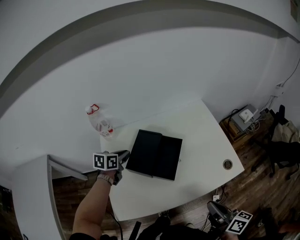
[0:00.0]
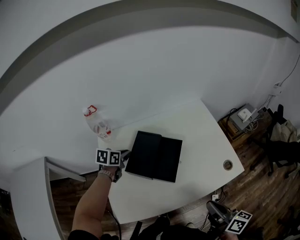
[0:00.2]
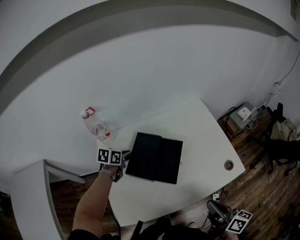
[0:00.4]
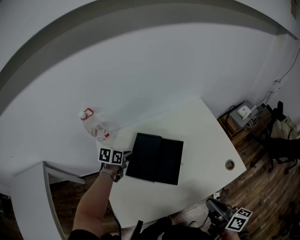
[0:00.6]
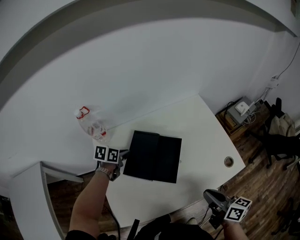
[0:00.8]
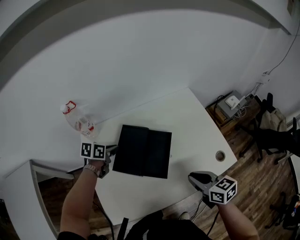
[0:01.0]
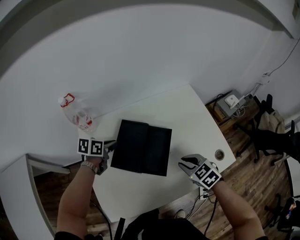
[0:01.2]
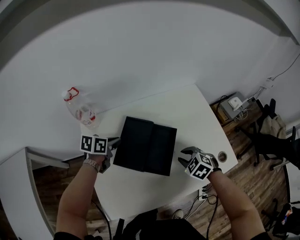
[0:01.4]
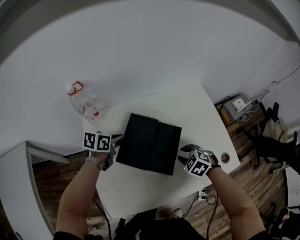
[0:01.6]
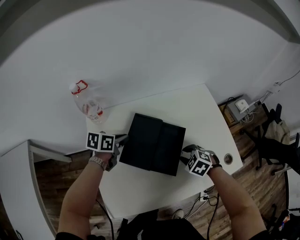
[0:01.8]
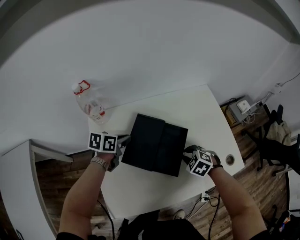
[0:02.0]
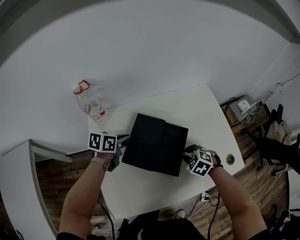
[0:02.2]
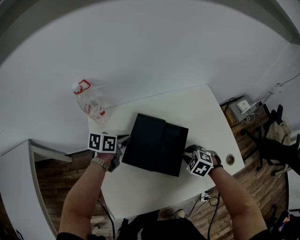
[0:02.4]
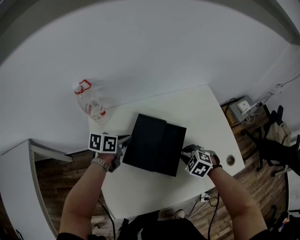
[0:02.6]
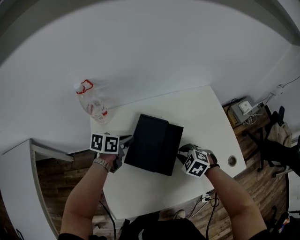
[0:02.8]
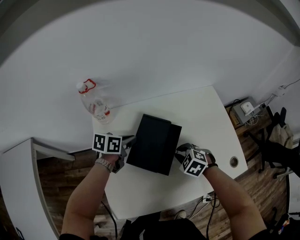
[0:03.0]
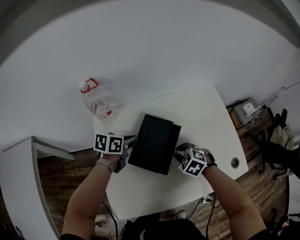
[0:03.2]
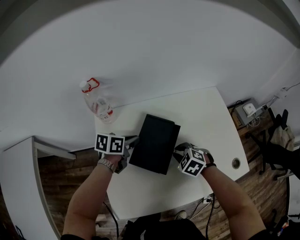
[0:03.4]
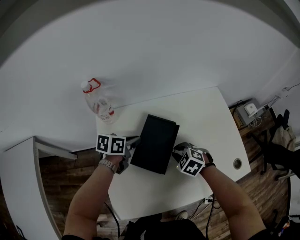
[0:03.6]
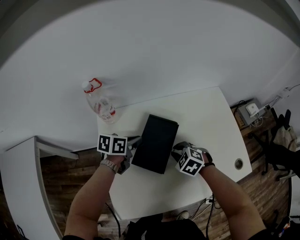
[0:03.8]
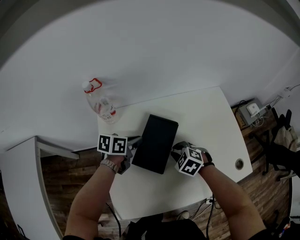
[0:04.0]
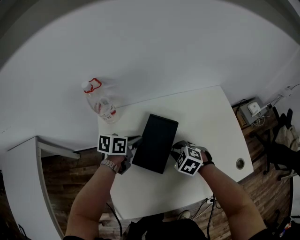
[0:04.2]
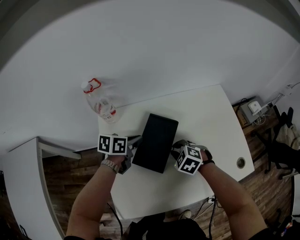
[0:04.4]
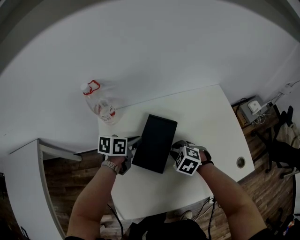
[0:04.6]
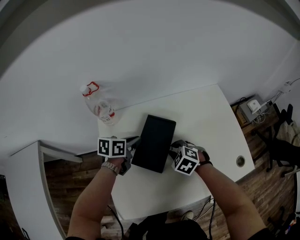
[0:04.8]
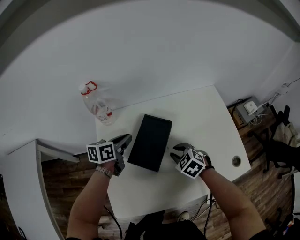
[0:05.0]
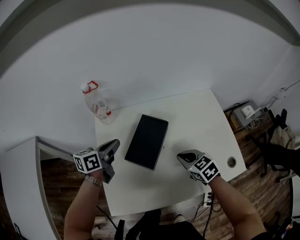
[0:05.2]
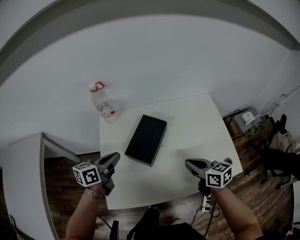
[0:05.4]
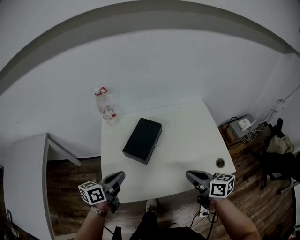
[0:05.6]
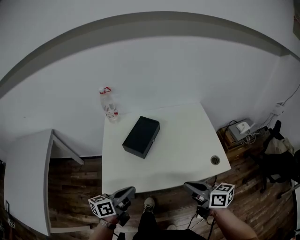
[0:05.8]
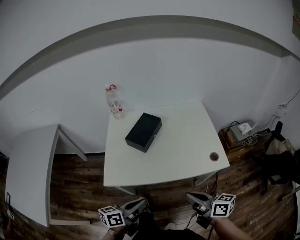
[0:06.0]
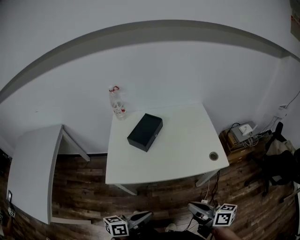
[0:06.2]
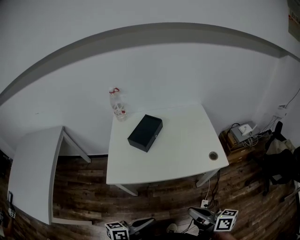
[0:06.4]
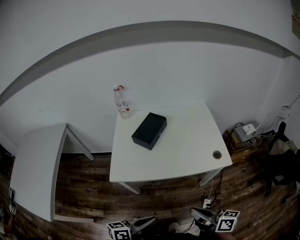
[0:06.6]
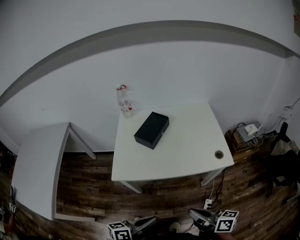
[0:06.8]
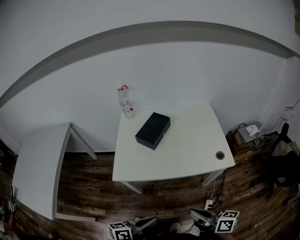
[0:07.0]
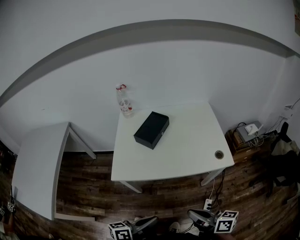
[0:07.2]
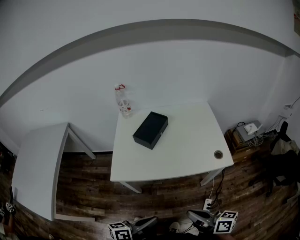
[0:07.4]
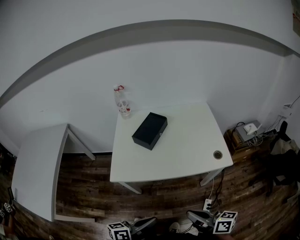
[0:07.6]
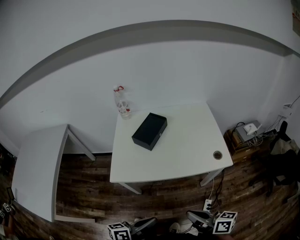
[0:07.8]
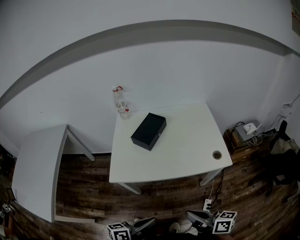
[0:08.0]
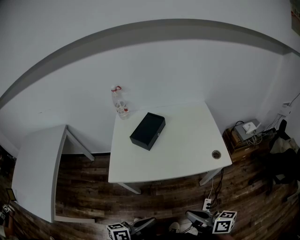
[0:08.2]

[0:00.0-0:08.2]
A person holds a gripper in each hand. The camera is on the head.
0:00.0 to 0:01.6: The left gripper goes roughly 5 cm downward. The right gripper is displaced forward, downward and to the left by roughly 30 cm, tilts its fingers some 50 degrees downward, and opens.
0:01.6 to 0:03.2: The right gripper goes roughly 10 cm to the left.
0:03.2 to 0:05.0: There are only small adjustments of the grippers.
0:05.0 to 0:06.6: The two grippers travel together, backward, roughly 50 cm. The right gripper shifts about 20 cm upward, tips its fingers upward by about 50 degrees, and closes its fingers. The left gripper rotates some 20 degrees.
0:06.6 to 0:08.2: The grippers make only small movements.

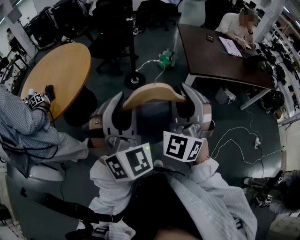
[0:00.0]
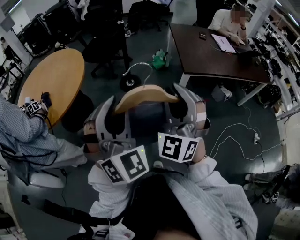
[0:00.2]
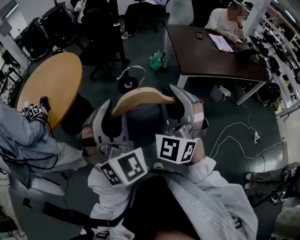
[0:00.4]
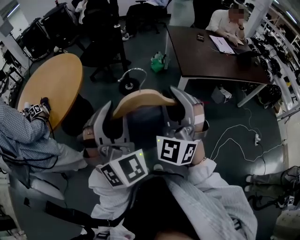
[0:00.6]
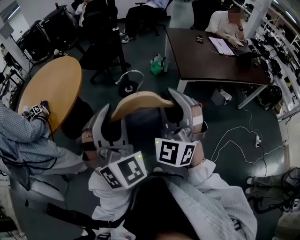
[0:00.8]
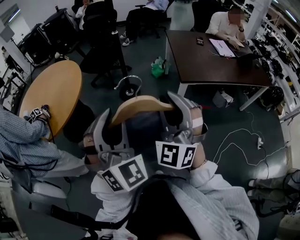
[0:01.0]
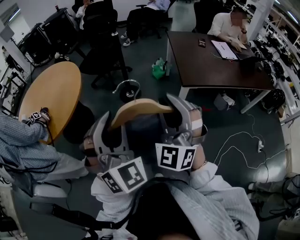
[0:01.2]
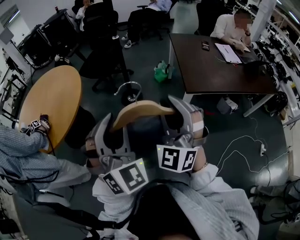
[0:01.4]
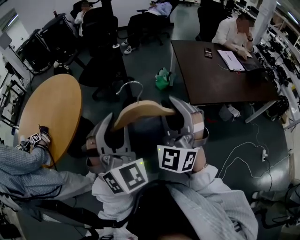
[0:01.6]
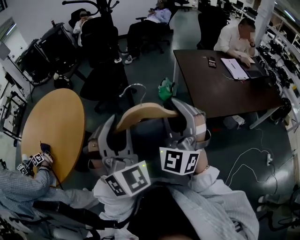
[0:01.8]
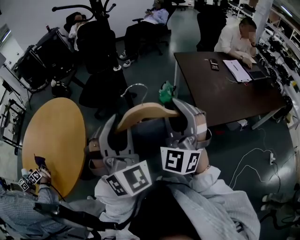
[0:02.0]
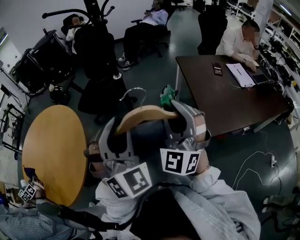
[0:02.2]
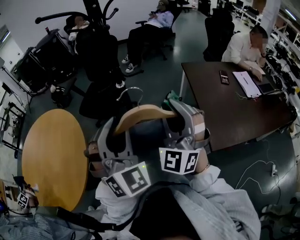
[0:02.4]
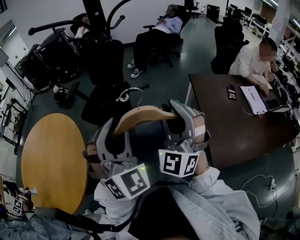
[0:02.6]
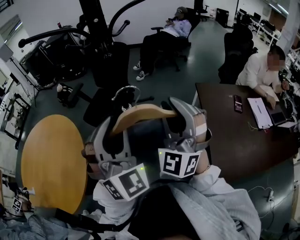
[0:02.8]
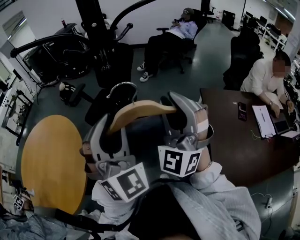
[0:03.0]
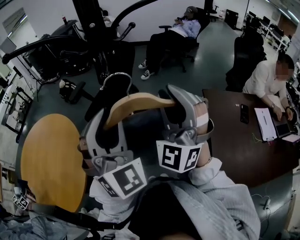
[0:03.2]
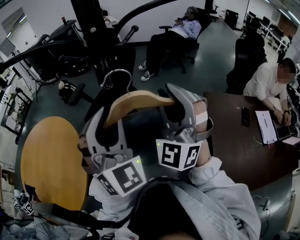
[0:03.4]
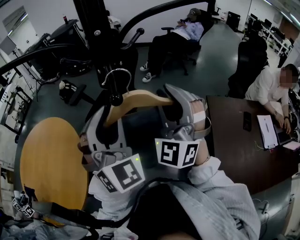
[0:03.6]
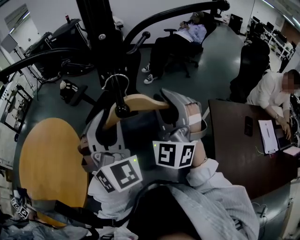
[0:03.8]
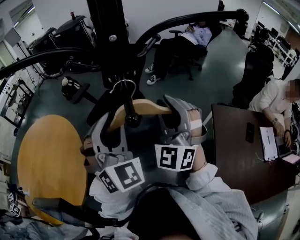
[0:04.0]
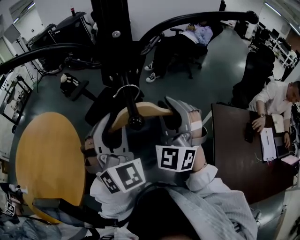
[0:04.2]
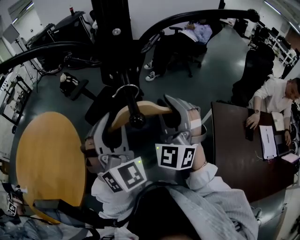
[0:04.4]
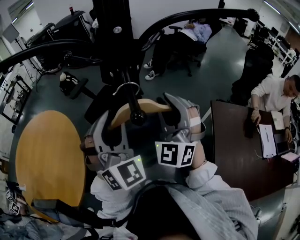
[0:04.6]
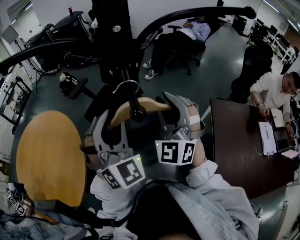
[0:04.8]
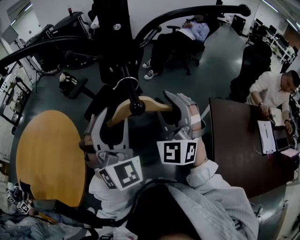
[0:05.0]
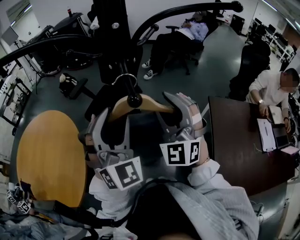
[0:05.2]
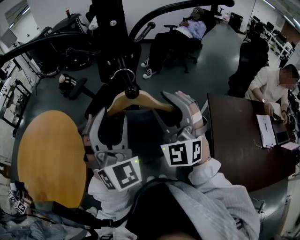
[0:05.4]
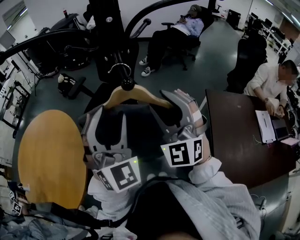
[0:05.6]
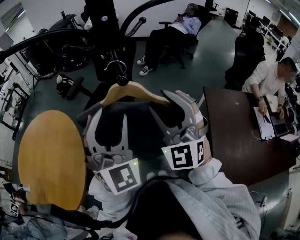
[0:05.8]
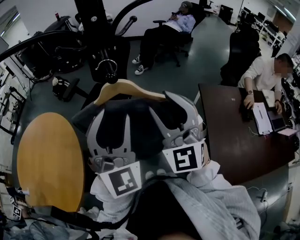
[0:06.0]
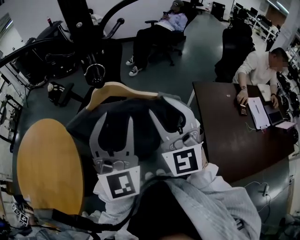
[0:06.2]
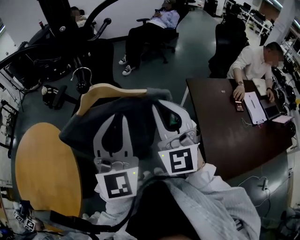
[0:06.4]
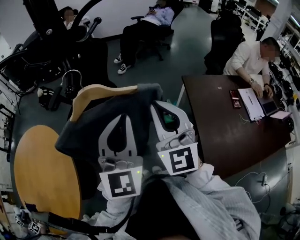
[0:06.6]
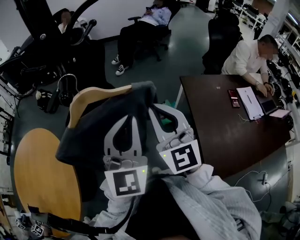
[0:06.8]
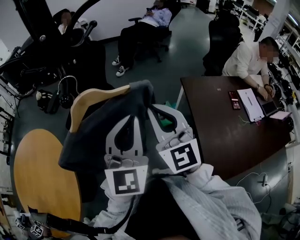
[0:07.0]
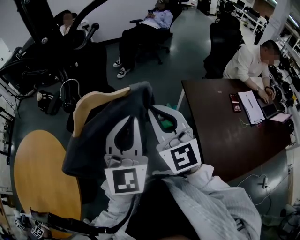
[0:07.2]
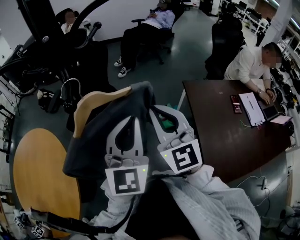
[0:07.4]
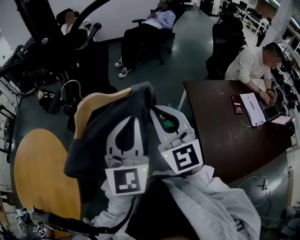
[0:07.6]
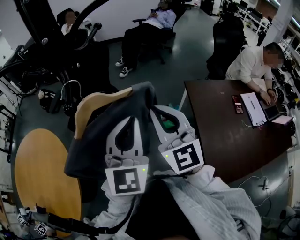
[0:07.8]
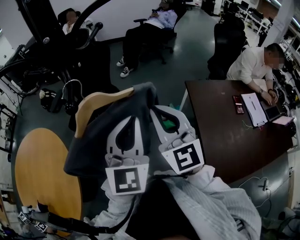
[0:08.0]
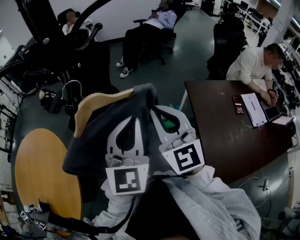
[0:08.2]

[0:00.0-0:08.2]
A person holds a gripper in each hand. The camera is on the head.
0:00.0 to 0:01.6: The two grippers go roughly 25 cm forward.
0:01.6 to 0:03.2: The two grippers travel together, forward, about 70 cm.
0:03.2 to 0:05.0: The right gripper moves forward and downward, roughly 10 cm, while the left gripper travels forward by roughly 10 cm.
0:05.0 to 0:06.6: The left gripper heads to the right and backward, covering some 15 cm, changes its angle by approximately 40 degrees, and closes its fingers; the right gripper shifts approximately 15 cm backward and to the right, swivels some 30 degrees, and closes its fingers.
0:06.6 to 0:08.2: The grippers stay close to where they were, moving slightly.

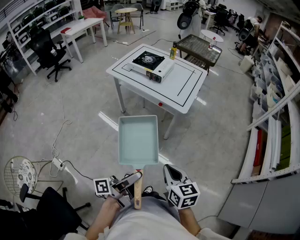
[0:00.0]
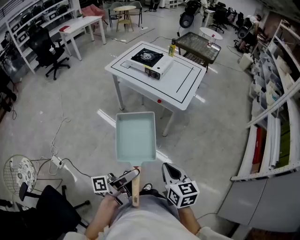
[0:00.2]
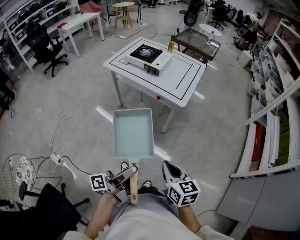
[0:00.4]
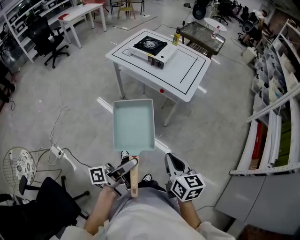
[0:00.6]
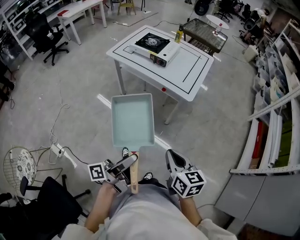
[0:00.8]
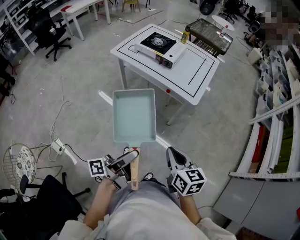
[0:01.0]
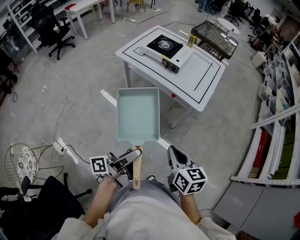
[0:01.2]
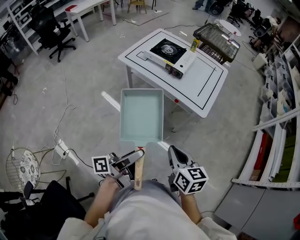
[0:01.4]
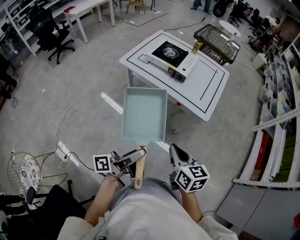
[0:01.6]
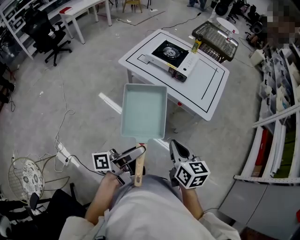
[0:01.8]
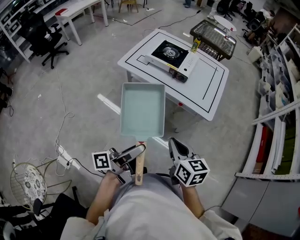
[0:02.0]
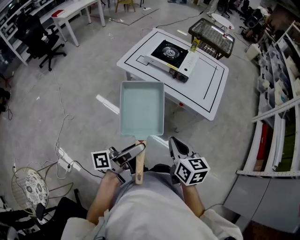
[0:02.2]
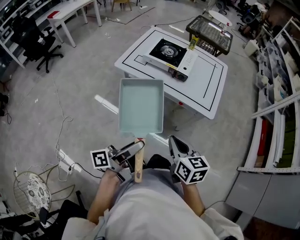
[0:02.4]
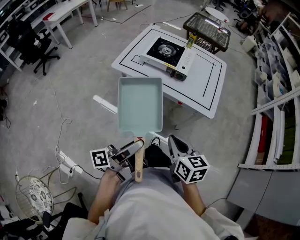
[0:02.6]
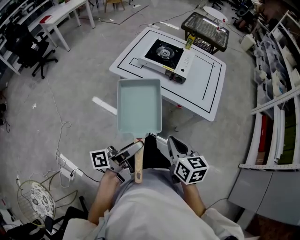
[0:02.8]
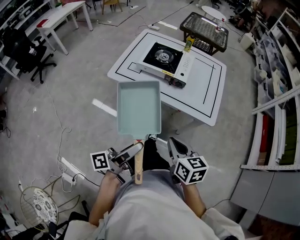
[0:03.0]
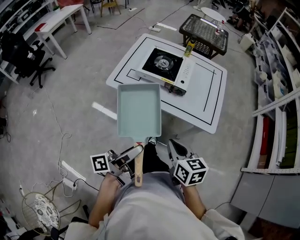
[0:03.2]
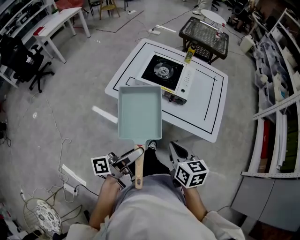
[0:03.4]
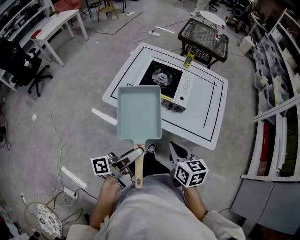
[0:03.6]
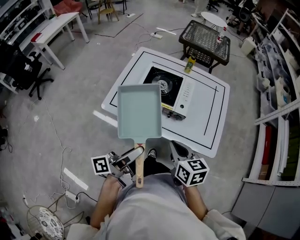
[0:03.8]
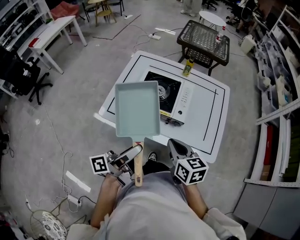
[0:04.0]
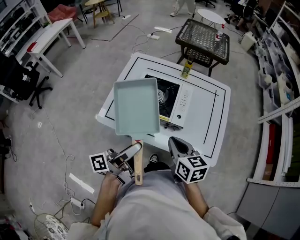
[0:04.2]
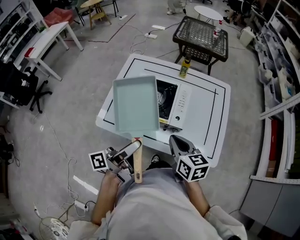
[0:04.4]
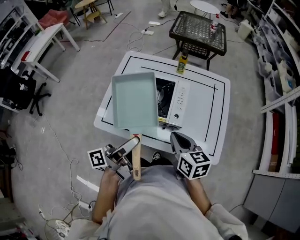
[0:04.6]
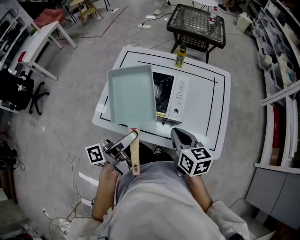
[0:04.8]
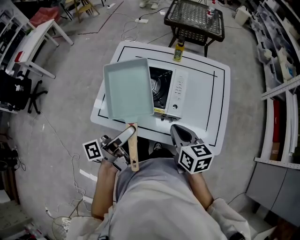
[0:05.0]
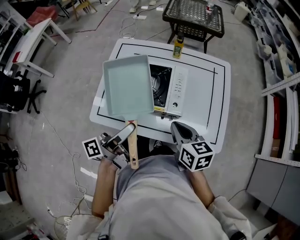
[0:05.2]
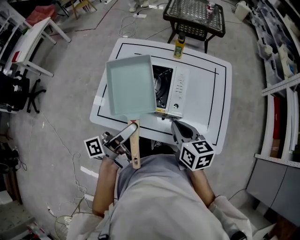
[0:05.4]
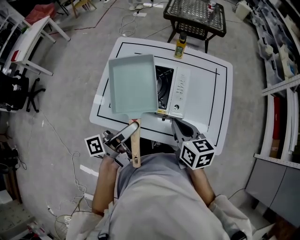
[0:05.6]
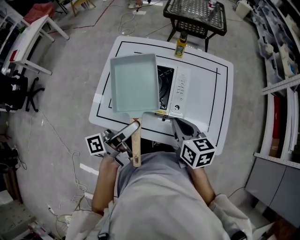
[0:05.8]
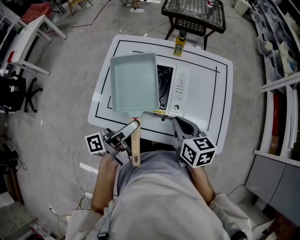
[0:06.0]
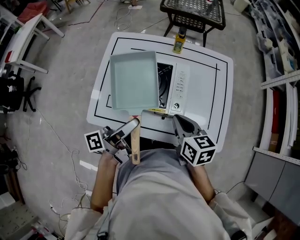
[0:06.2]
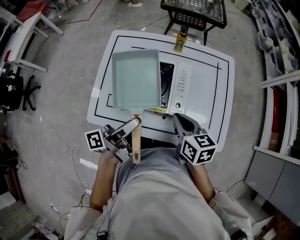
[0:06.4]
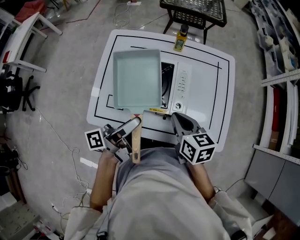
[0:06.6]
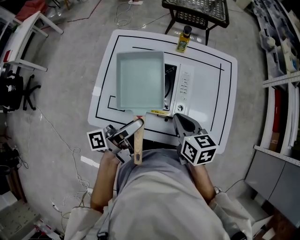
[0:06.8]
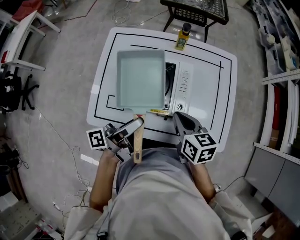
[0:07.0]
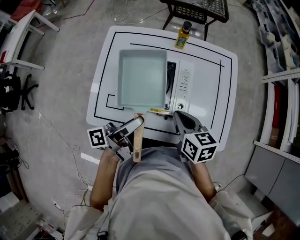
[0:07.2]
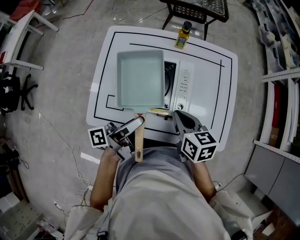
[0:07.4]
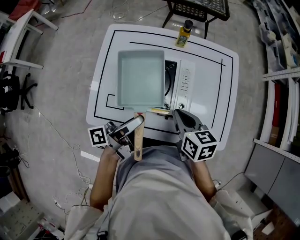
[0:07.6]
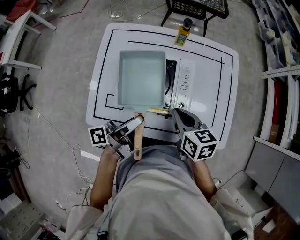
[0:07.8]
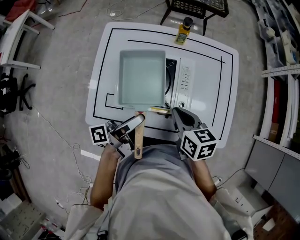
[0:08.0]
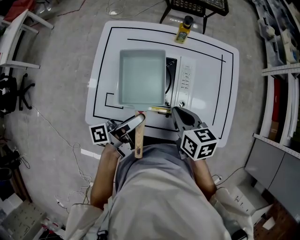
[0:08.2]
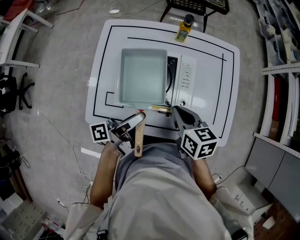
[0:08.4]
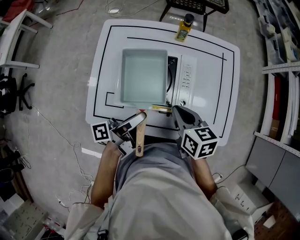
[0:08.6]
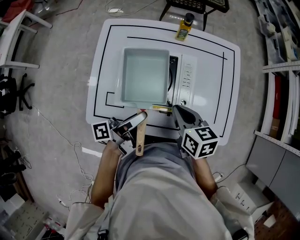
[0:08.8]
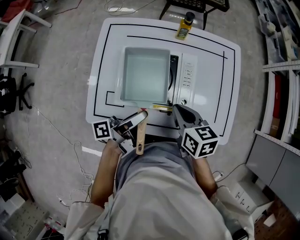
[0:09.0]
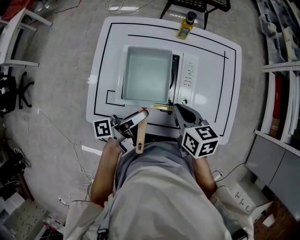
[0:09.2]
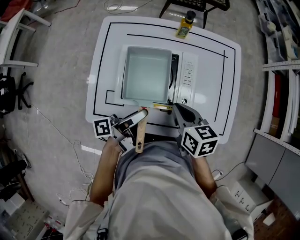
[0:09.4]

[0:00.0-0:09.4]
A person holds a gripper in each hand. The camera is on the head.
0:00.0 to 0:01.6: The right gripper shifts by approximately 25 cm.
0:01.6 to 0:03.2: The right gripper shifts by some 20 cm.
0:03.2 to 0:04.8: The right gripper ends up about 30 cm from where it was.
0:04.8 to 0:06.2: The right gripper ends up some 5 cm from where it was.
0:06.2 to 0:07.8: The right gripper ends up approximately 5 cm from where it was.
